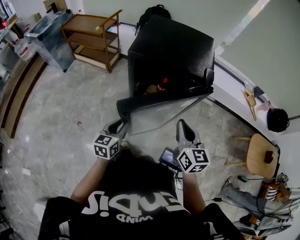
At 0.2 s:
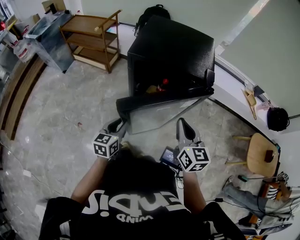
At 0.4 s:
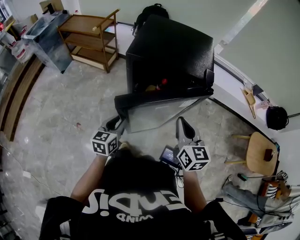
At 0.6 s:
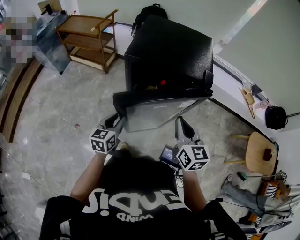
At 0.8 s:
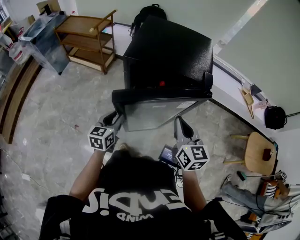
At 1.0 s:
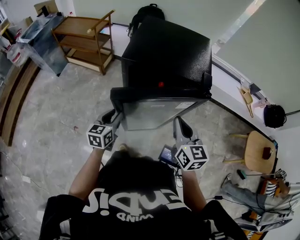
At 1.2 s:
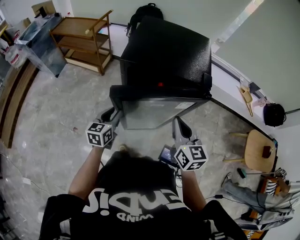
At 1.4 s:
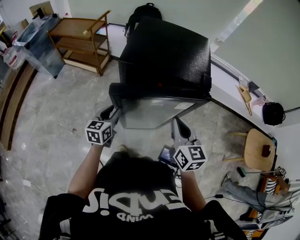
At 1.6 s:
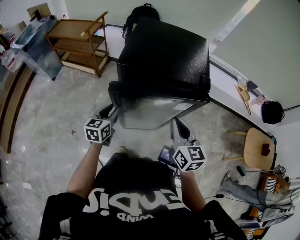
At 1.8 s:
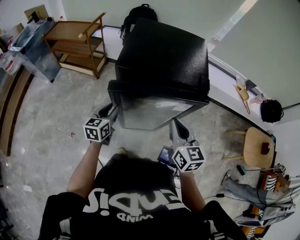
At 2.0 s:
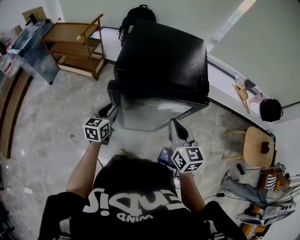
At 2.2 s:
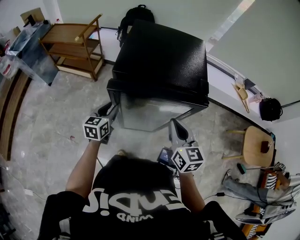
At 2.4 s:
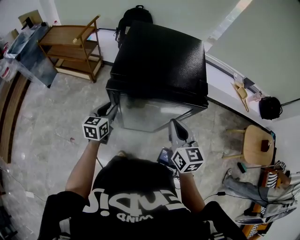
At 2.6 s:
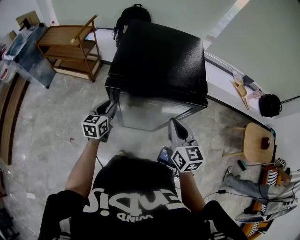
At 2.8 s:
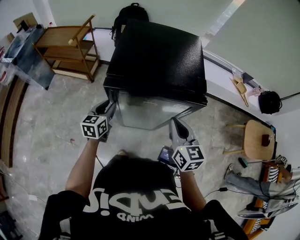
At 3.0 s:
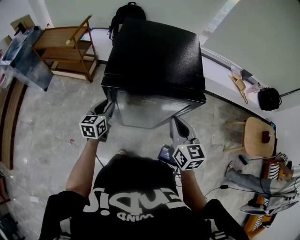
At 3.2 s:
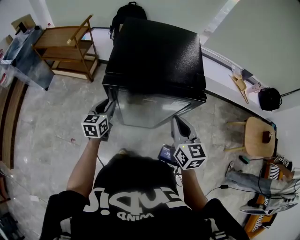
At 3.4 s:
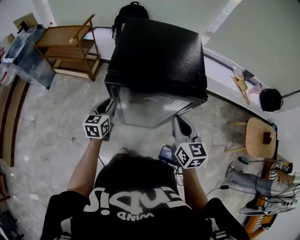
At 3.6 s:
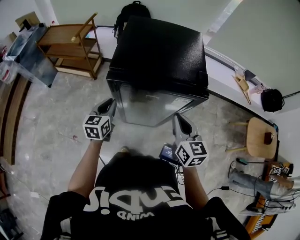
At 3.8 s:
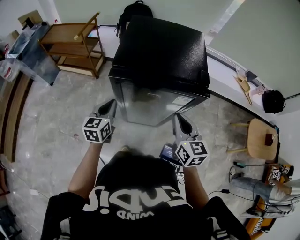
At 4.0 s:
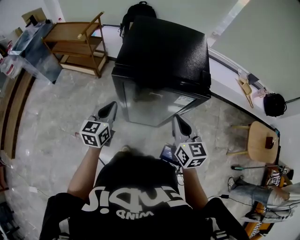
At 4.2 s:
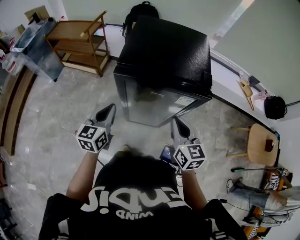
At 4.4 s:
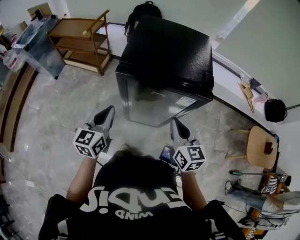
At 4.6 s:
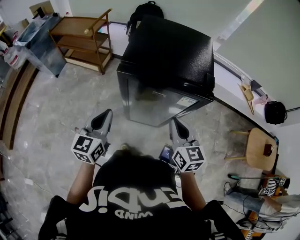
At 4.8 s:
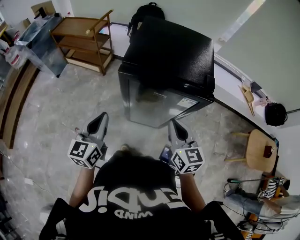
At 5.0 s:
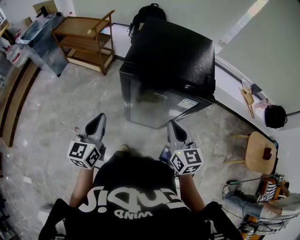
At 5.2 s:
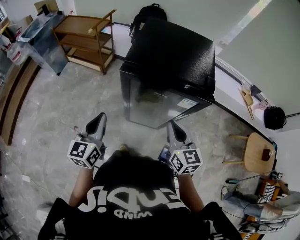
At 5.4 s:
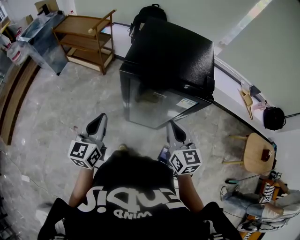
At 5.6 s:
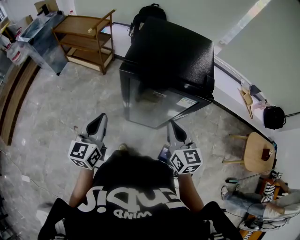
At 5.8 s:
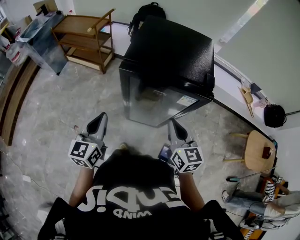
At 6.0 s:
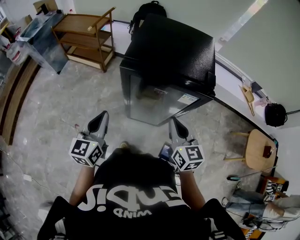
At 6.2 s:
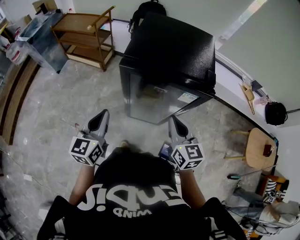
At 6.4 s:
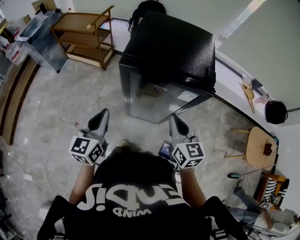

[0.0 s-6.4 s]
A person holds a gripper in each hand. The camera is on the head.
0.0 to 1.6 s: The right gripper moves forward, approximately 5 cm. Meanwhile the left gripper moves forward, some 15 cm.
1.6 to 3.2 s: The left gripper shifts approximately 5 cm forward.
3.2 to 4.8 s: The right gripper moves roughly 5 cm, while the left gripper shifts some 20 cm backward and upward, and closes its fingers.
4.8 to 6.4 s: The grippers stay close to where they were, moving slightly.

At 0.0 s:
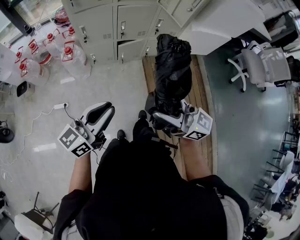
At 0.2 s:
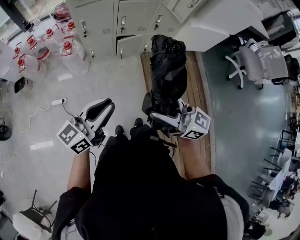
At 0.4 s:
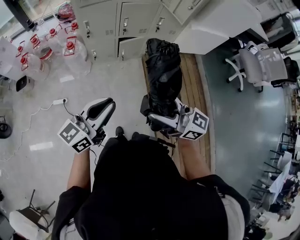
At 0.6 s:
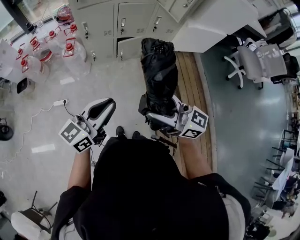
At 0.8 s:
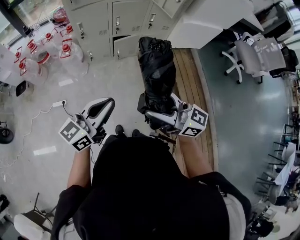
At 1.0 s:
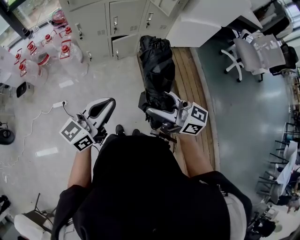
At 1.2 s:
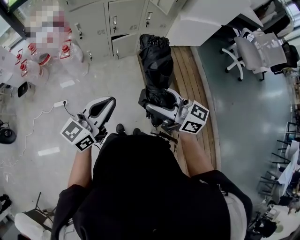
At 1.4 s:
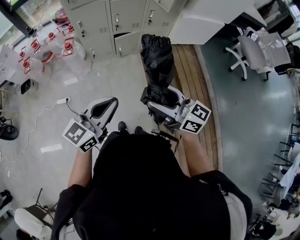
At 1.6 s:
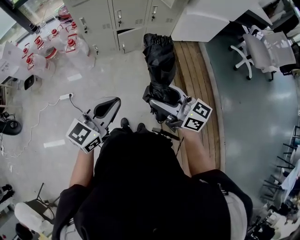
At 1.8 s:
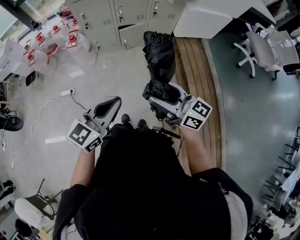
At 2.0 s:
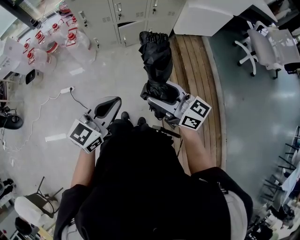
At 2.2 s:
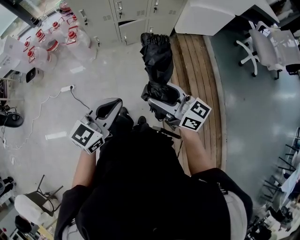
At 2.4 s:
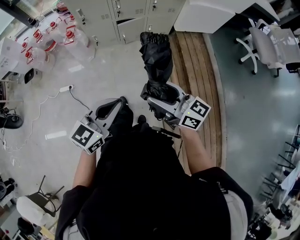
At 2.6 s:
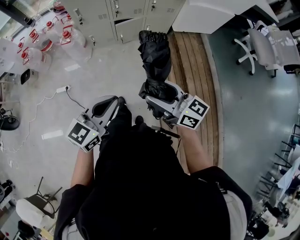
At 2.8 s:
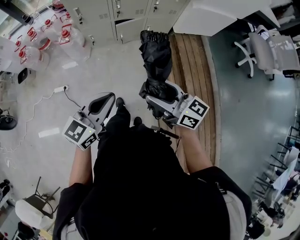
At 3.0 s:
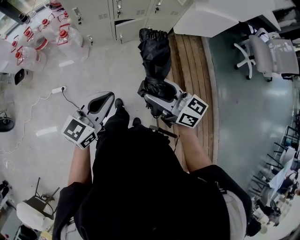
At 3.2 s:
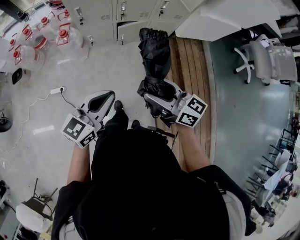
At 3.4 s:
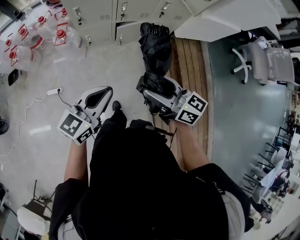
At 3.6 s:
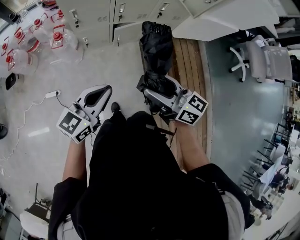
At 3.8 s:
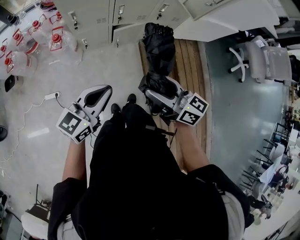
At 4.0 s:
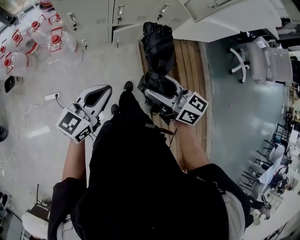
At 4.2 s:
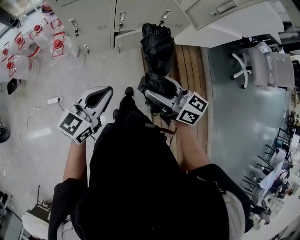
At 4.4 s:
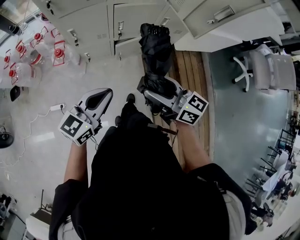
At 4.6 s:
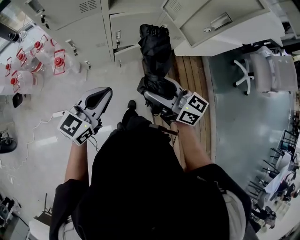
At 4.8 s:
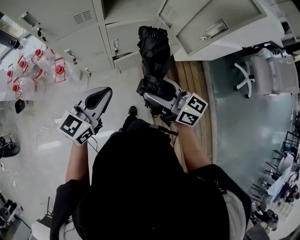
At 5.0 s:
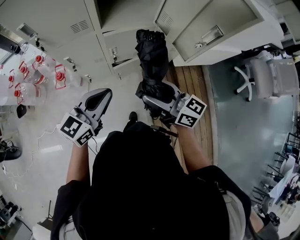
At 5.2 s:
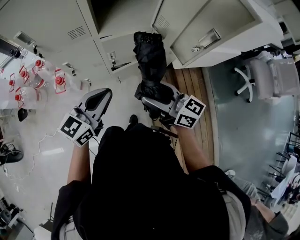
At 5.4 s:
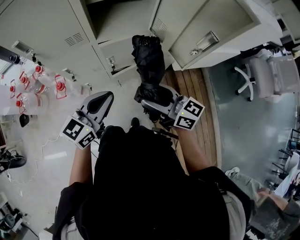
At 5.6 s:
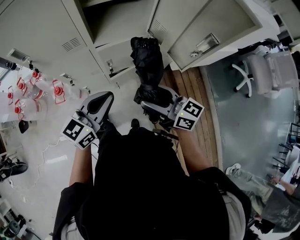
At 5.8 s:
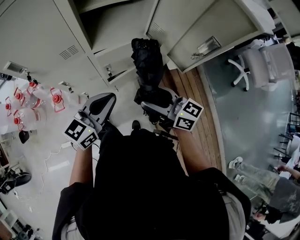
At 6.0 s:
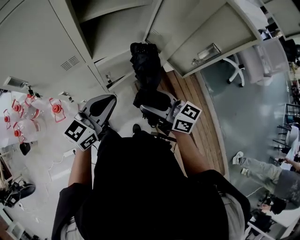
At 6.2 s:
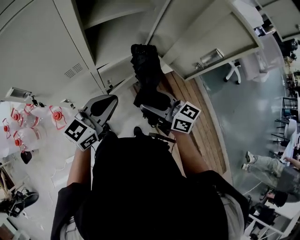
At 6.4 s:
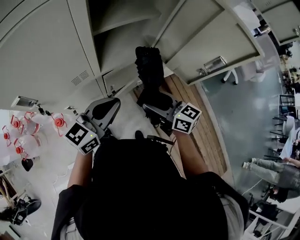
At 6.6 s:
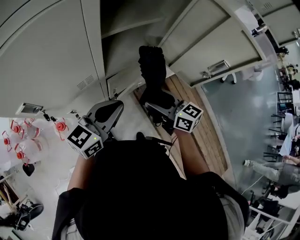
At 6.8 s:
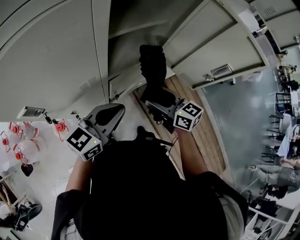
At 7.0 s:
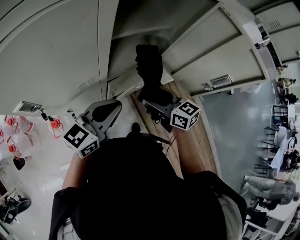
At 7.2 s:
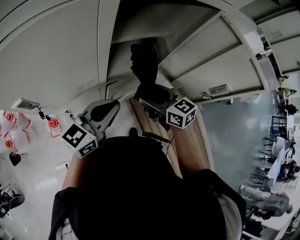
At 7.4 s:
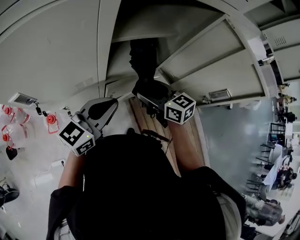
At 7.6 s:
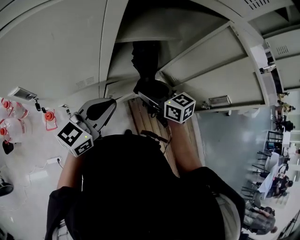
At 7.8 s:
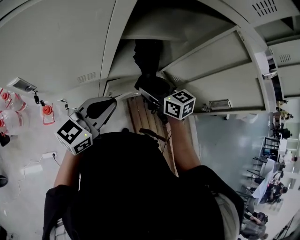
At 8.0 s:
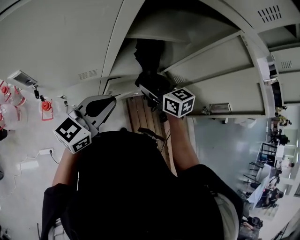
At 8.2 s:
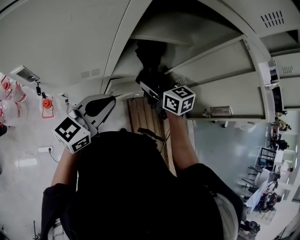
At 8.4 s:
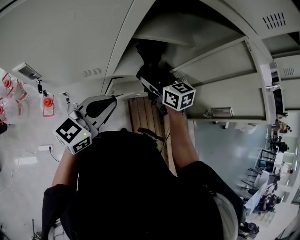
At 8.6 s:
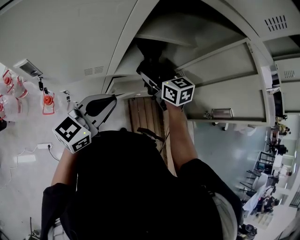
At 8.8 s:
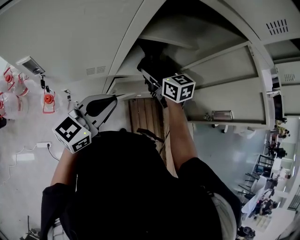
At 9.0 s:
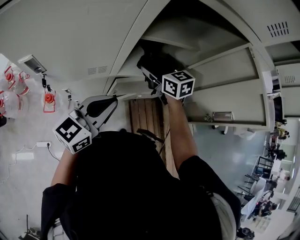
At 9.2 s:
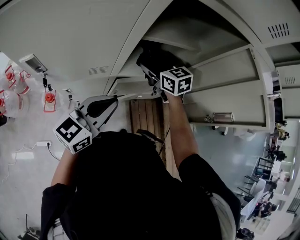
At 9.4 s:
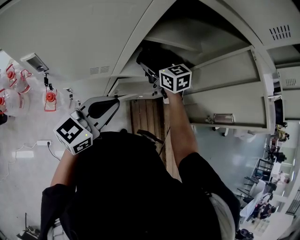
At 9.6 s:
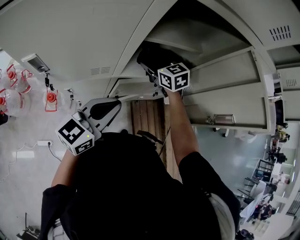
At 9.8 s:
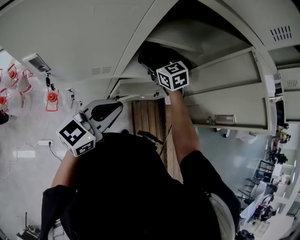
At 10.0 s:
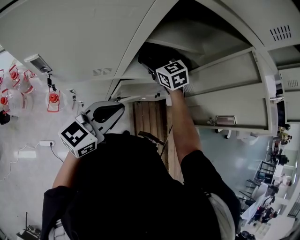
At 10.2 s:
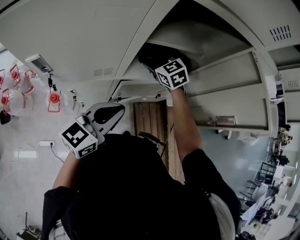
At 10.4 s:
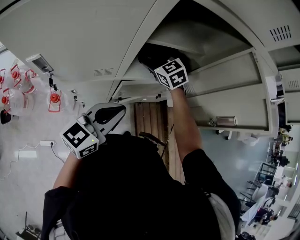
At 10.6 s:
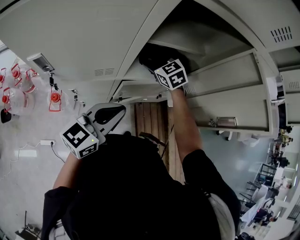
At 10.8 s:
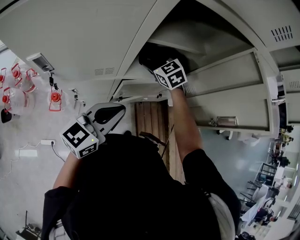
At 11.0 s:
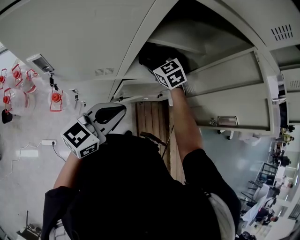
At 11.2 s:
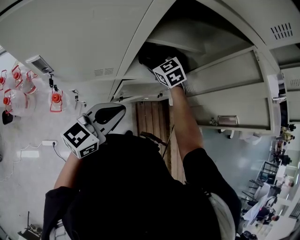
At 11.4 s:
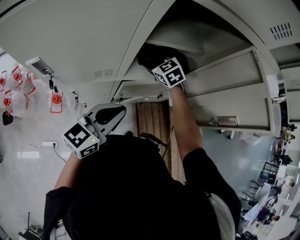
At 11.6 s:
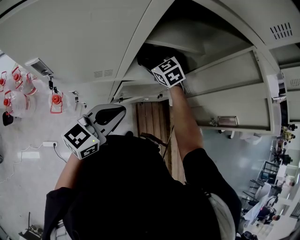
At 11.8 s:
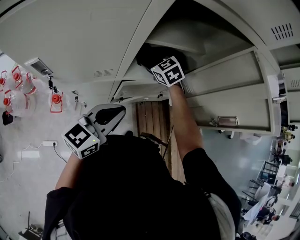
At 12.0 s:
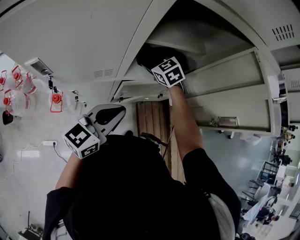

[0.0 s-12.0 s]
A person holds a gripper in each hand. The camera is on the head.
0.0 to 1.6 s: The left gripper moves backward and to the right, some 15 cm. Meanwhile the right gripper is displaced backward, downward and to the right by approximately 15 cm.
1.6 to 3.0 s: The grippers both shift forward and downward by approximately 15 cm.
3.0 to 4.4 s: Both grippers move forward, approximately 25 cm.
4.4 to 6.0 s: The two grippers go roughly 20 cm forward.
6.0 to 7.6 s: The right gripper moves forward, roughly 15 cm, and turns by about 20 degrees. Meanwhile the left gripper goes some 10 cm forward and to the left.
7.6 to 9.0 s: The right gripper moves forward, about 10 cm.
9.0 to 10.4 s: The right gripper shifts by approximately 5 cm, and changes its angle by approximately 30 degrees.
10.4 to 12.0 s: The grippers stay close to where they were, moving slightly.

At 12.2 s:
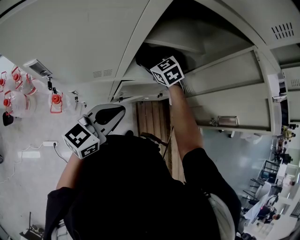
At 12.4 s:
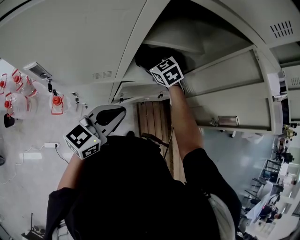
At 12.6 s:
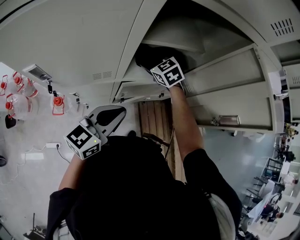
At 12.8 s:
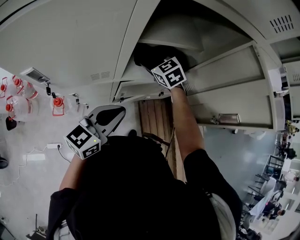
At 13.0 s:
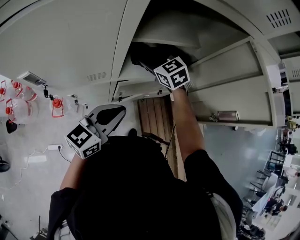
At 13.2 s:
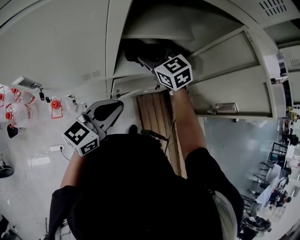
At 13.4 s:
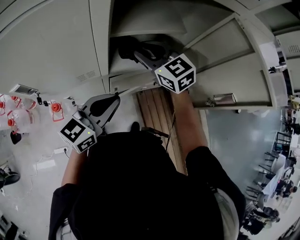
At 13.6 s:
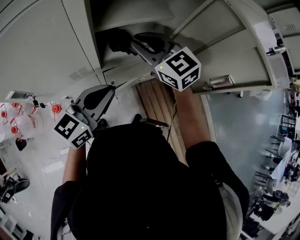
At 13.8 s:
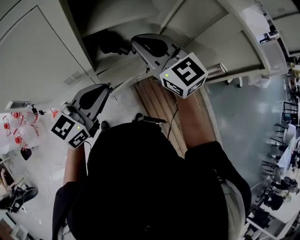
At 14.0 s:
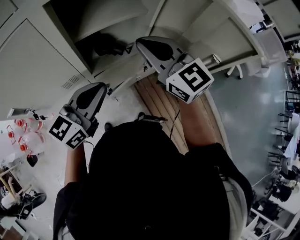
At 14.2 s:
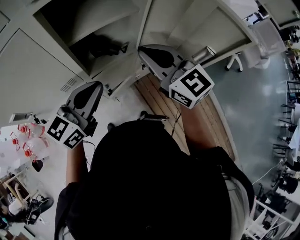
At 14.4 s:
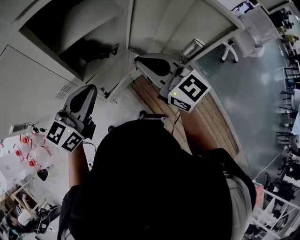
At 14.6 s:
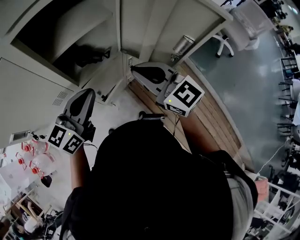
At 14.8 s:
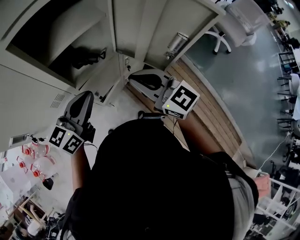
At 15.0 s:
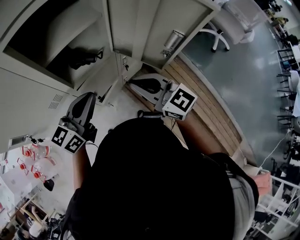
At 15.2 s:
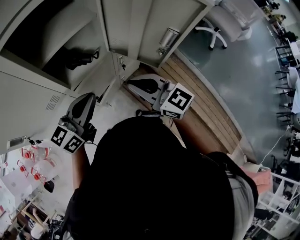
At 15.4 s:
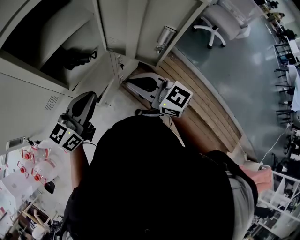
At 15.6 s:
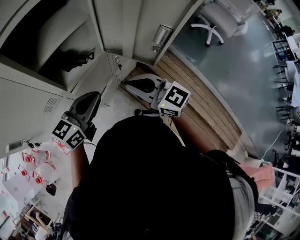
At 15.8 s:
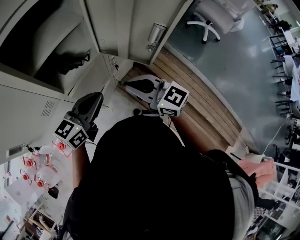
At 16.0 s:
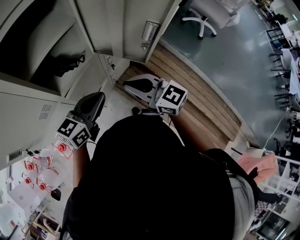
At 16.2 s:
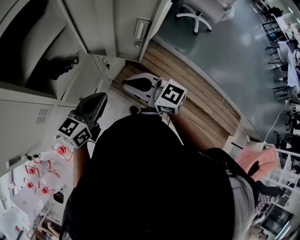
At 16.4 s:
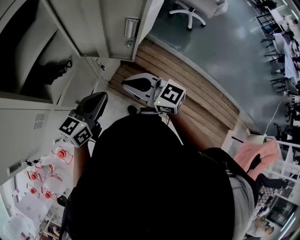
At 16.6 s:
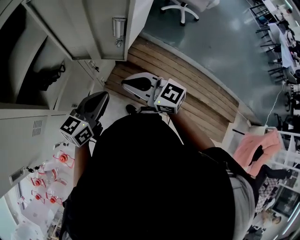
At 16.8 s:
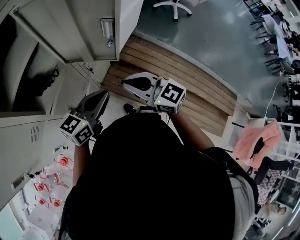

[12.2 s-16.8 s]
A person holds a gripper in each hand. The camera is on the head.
12.2 to 13.8 s: The right gripper moves upward and backward, approximately 25 cm, points its fingers some 30 degrees further upward, and closes its fingers. The left gripper goes roughly 5 cm upward.
13.8 to 15.2 s: The right gripper moves backward, to the right and downward, about 20 cm, while the left gripper goes approximately 5 cm to the right.
15.2 to 16.8 s: The left gripper shifts roughly 15 cm to the right, and swivels some 30 degrees. The right gripper heads to the right, covering roughly 10 cm.
